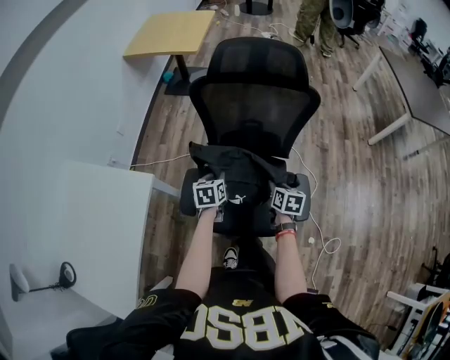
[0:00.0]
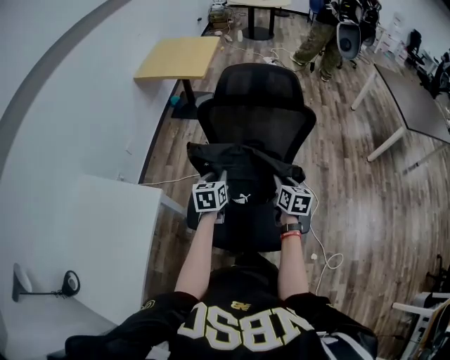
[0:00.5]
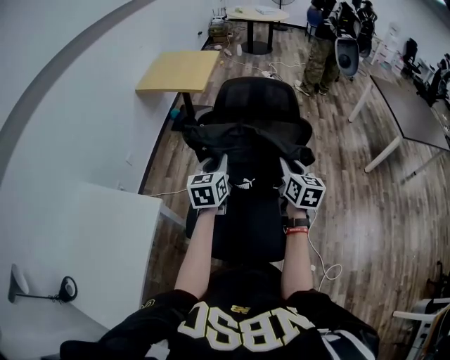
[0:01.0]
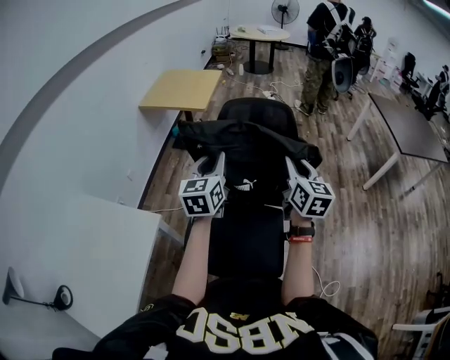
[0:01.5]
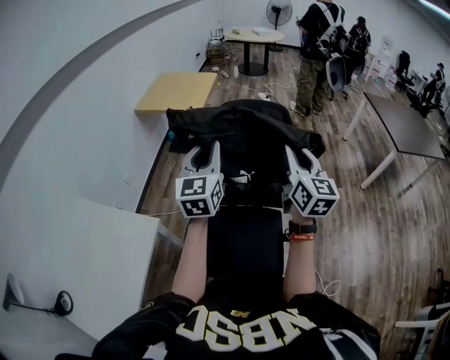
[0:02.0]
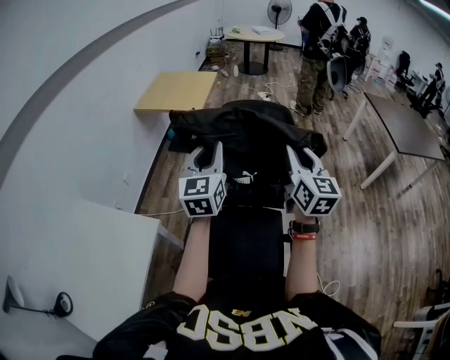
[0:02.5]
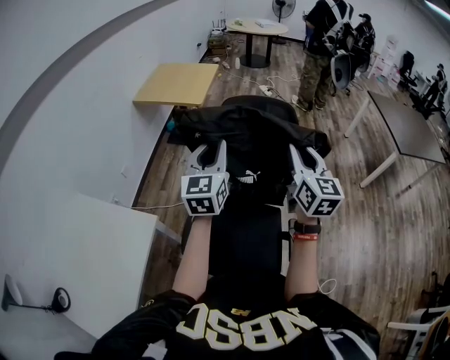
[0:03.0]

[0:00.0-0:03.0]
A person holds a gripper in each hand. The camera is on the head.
0:00.0 to 0:01.5: The grippers both shift upward by roughly 35 cm. The left gripper points its fingers roughly 40 degrees further upward, while the right gripper tilts its fingers some 40 degrees upward.
0:01.5 to 0:03.0: The left gripper changes place by some 5 cm, while the right gripper shifts by roughly 5 cm.

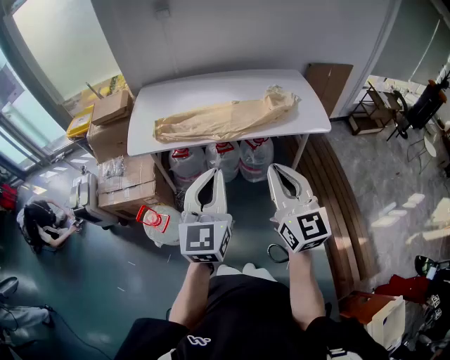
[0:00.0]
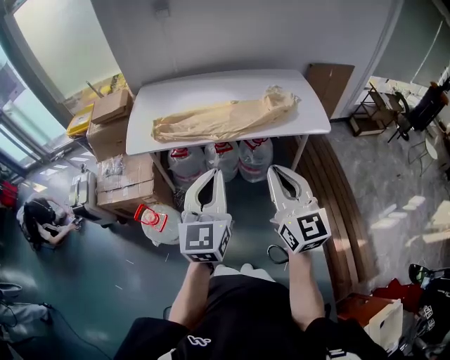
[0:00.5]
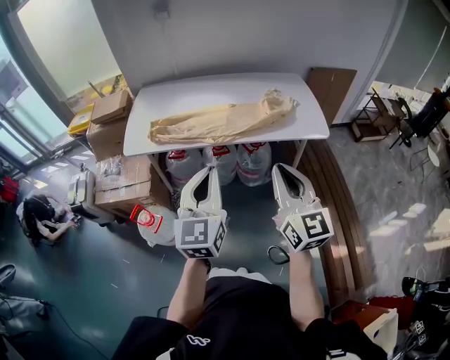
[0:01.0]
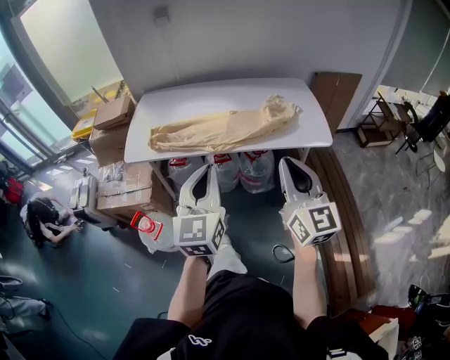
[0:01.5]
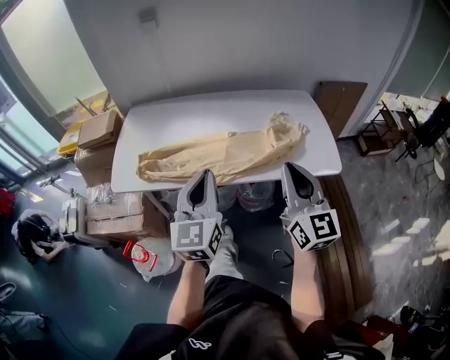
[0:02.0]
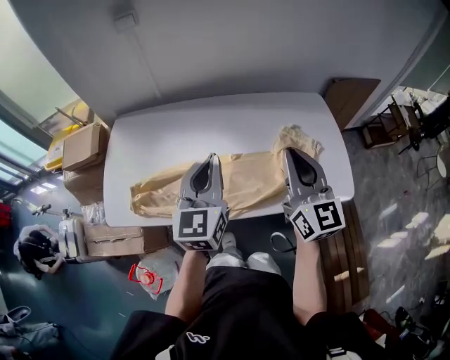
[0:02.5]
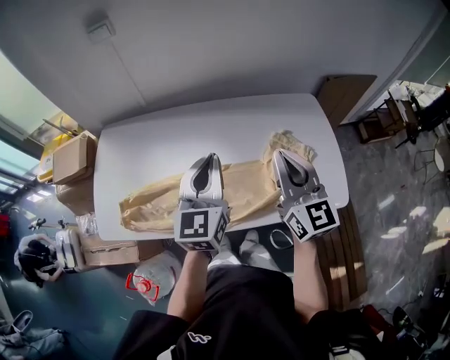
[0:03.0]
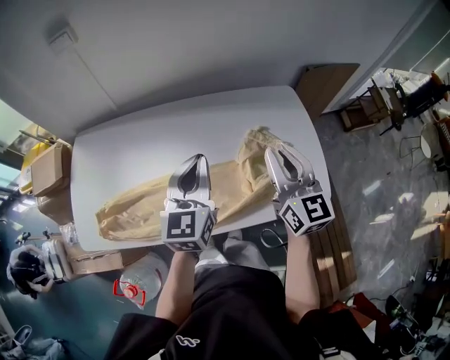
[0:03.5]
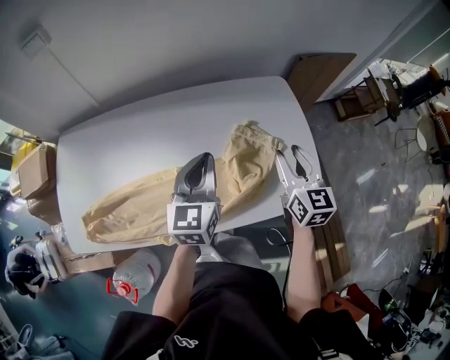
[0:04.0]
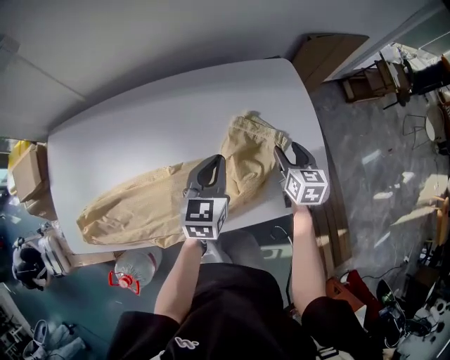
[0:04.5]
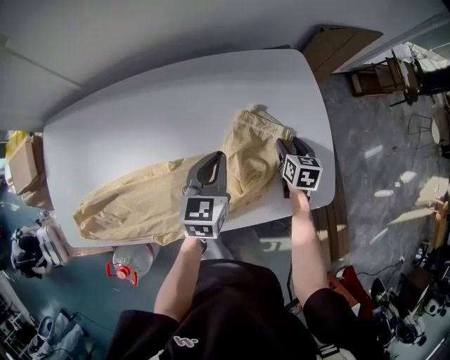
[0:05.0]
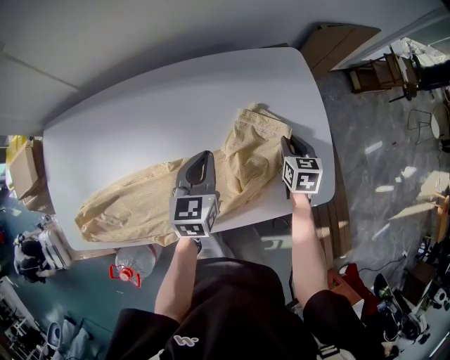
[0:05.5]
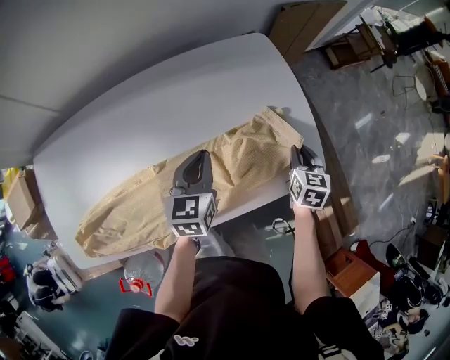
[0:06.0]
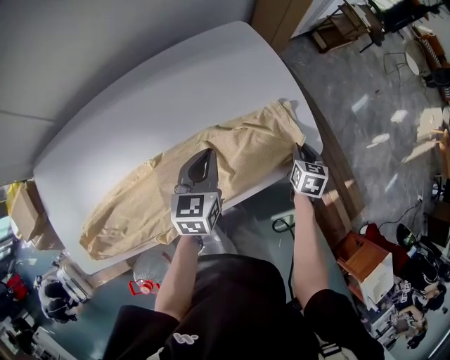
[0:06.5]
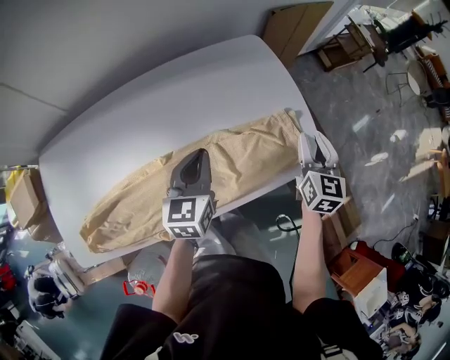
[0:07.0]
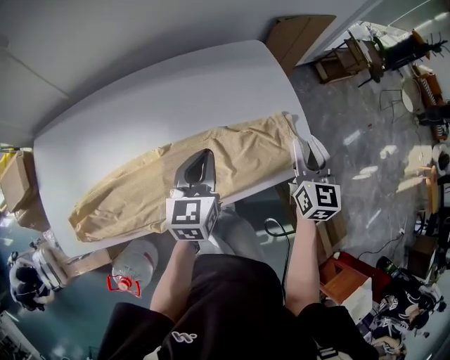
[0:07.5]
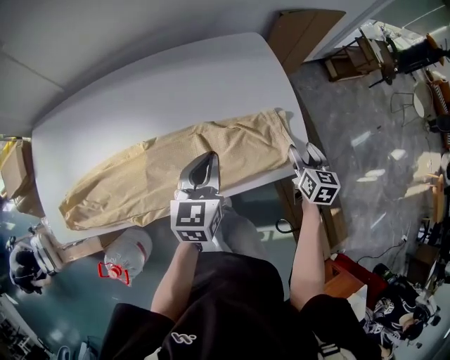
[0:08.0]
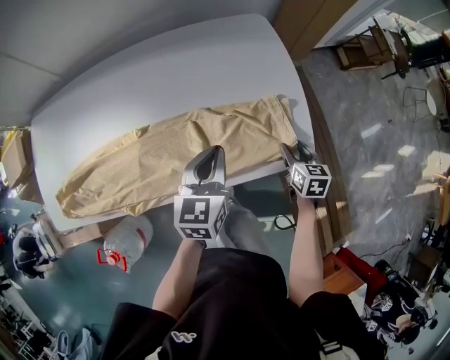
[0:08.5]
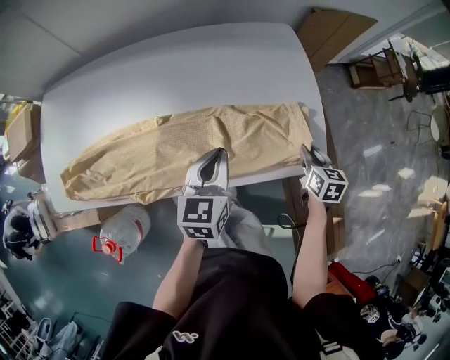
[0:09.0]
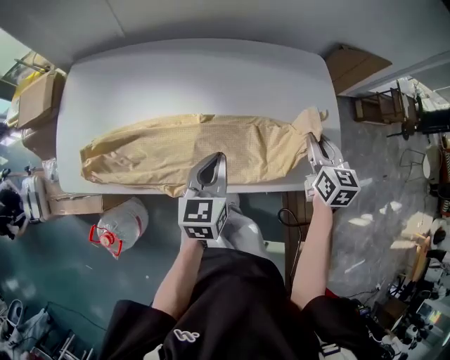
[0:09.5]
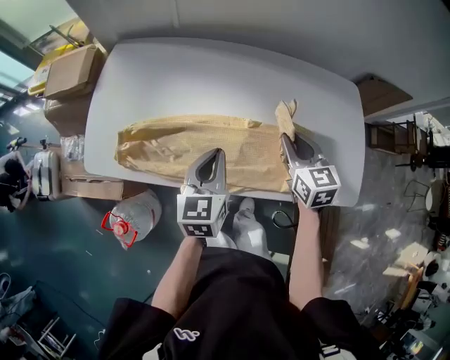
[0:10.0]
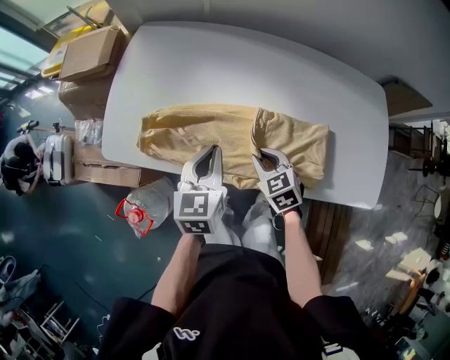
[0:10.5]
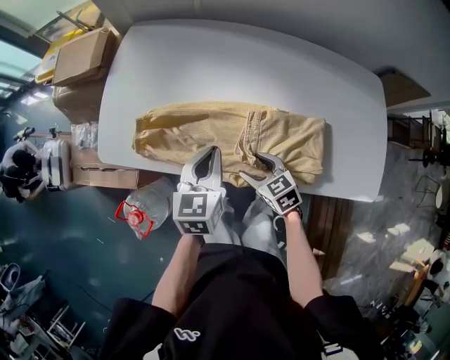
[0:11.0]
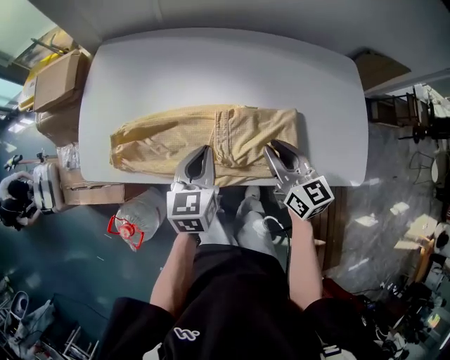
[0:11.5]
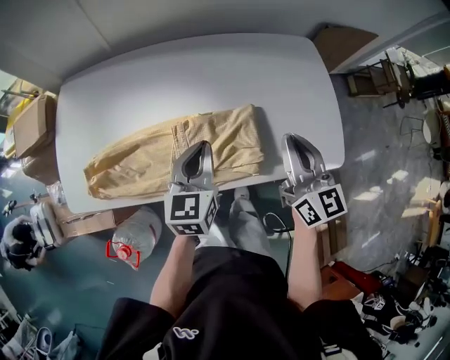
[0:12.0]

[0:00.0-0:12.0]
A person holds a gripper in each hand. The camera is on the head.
0:00.0 to 0:02.0: The left gripper heads forward, covering some 25 cm. Meanwhile the right gripper travels forward and to the right by some 25 cm.
0:02.0 to 0:04.0: Both grippers travel together forward and to the right, some 40 cm. The right gripper turns by some 30 degrees, and opens up.
0:04.0 to 0:06.0: The right gripper heads downward and to the right, covering roughly 25 cm, swivels roughly 30 degrees, and closes, while the left gripper shifts roughly 15 cm downward and to the right.
0:06.0 to 0:08.0: The right gripper goes up and down, roughly 20 cm each way, reversing 2 times, and opens. Meanwhile the left gripper goes left and right, about 10 cm each way, reversing 2 times.
0:08.0 to 0:10.0: The right gripper ends up some 40 cm from where it was, swivels approximately 40 degrees, and closes its fingers. Meanwhile the left gripper changes place by roughly 30 cm, and swivels approximately 20 degrees.
0:10.0 to 0:12.0: The right gripper goes downward and returns, roughly 15 cm each way, changes its angle by about 30 degrees, and opens, then closes again; the left gripper shifts by approximately 10 cm.

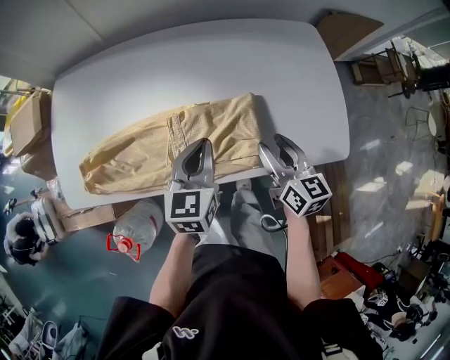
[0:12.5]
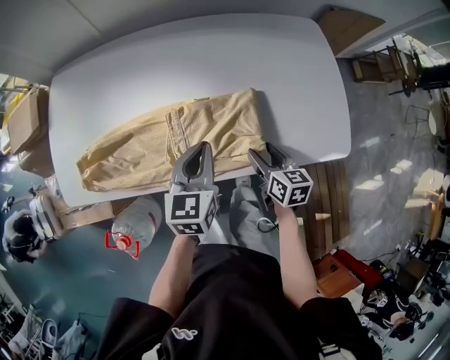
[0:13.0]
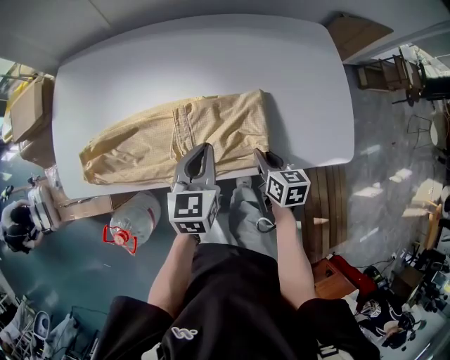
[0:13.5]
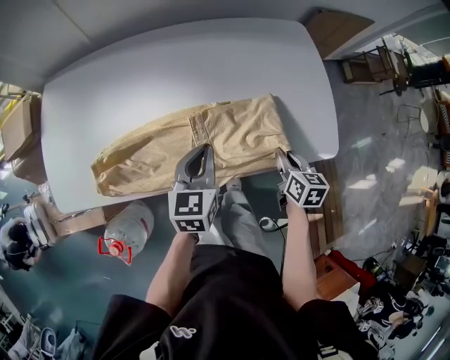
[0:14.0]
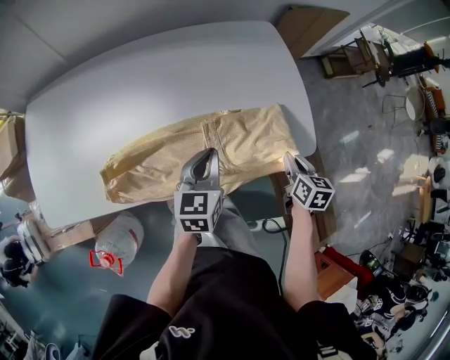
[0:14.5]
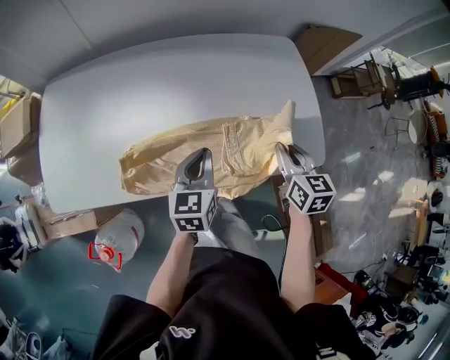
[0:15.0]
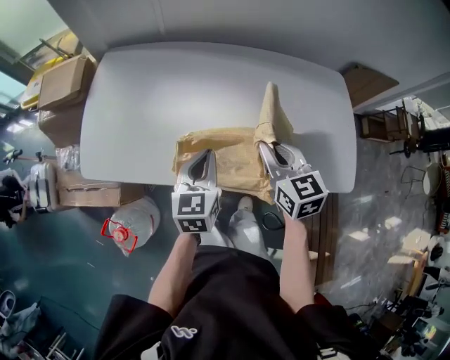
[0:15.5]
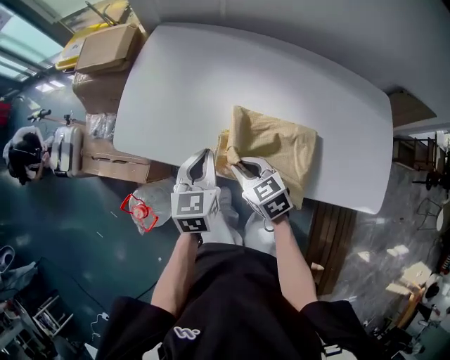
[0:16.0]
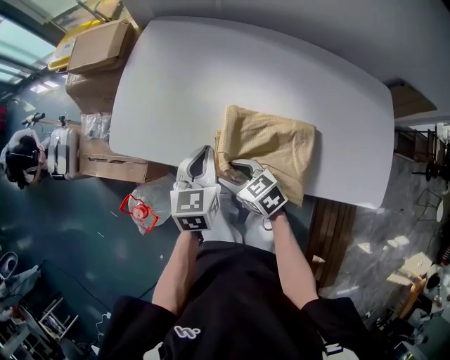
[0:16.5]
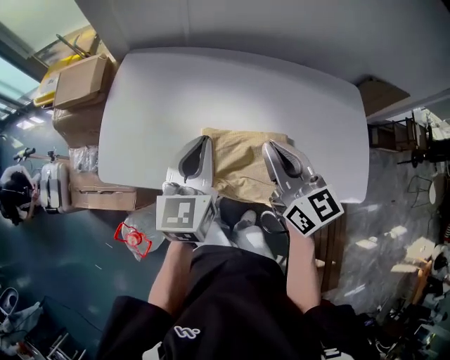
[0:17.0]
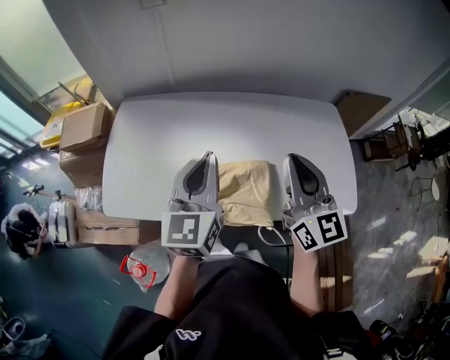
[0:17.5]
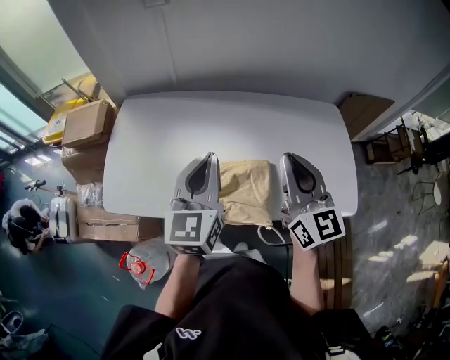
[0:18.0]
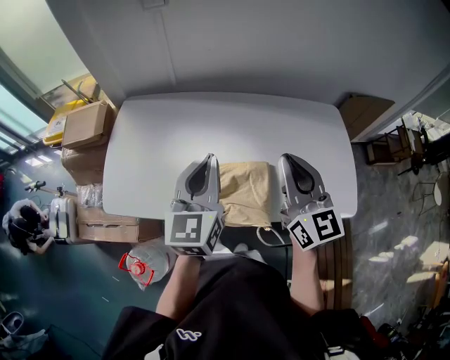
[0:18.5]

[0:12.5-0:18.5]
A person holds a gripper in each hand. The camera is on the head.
0:12.5 to 0:14.5: The left gripper heads to the right, covering some 15 cm; the right gripper shifts some 25 cm to the right, rotates some 30 degrees, and closes up.
0:14.5 to 0:16.5: The left gripper changes place by some 40 cm, and swivels about 30 degrees. Meanwhile the right gripper goes upward and returns, about 15 cm each way, turns by about 80 degrees, and opens its fingers.
0:16.5 to 0:18.5: The left gripper travels upward by some 20 cm, and rotates about 30 degrees; the right gripper shifts some 35 cm upward, tilts its fingers some 40 degrees upward, and closes its fingers.

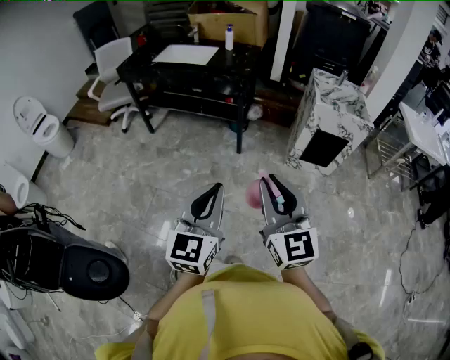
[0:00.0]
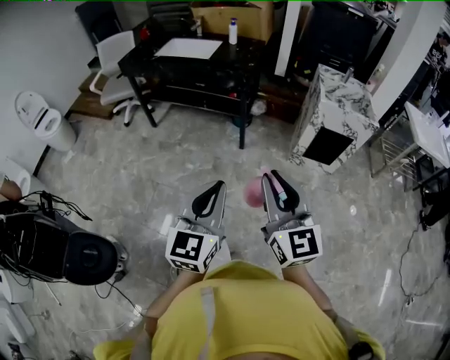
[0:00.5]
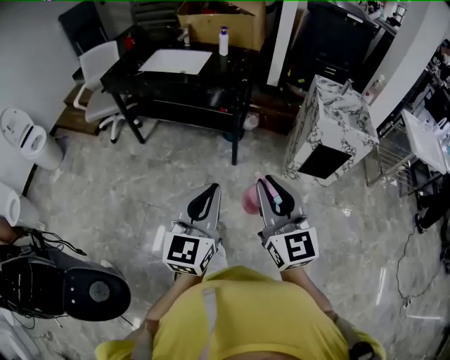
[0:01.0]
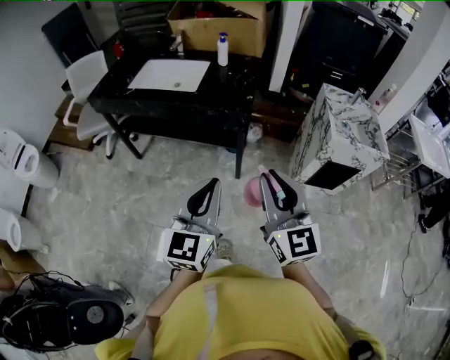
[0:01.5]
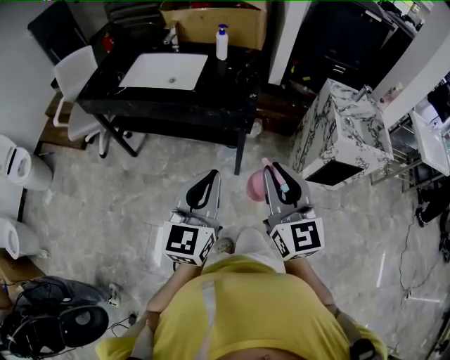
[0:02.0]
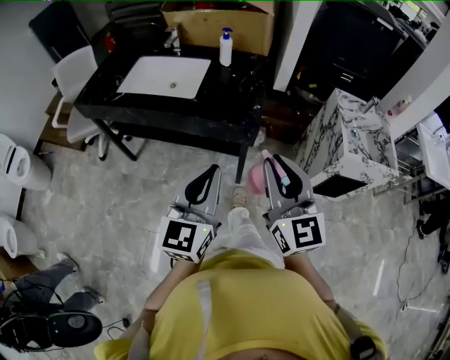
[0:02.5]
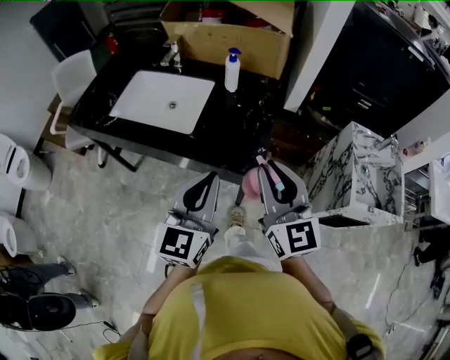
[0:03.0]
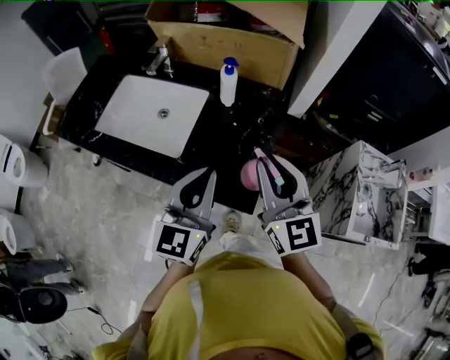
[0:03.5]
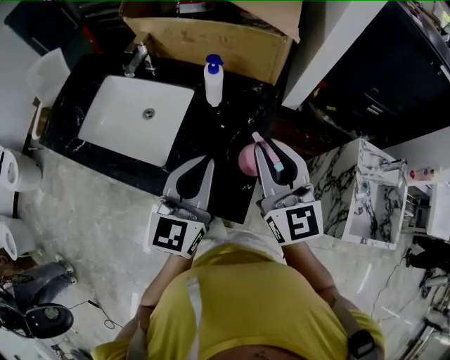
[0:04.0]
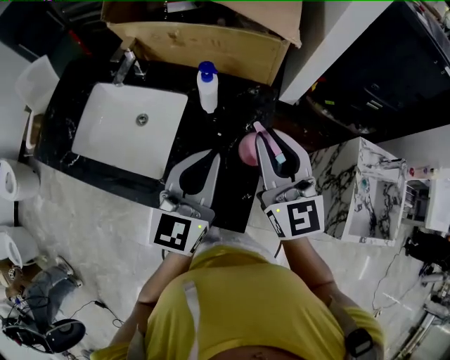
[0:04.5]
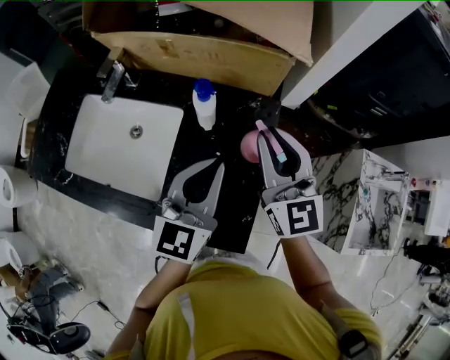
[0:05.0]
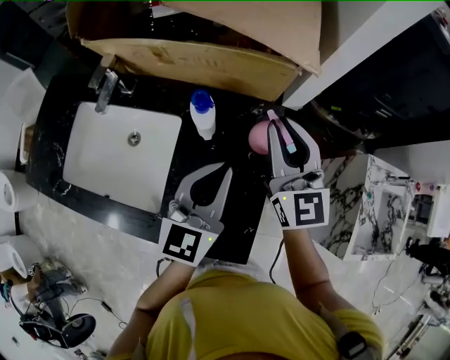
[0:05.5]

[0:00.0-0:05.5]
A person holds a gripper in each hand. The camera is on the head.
0:00.0 to 0:02.0: Both grippers are carried forward, some 40 cm.
0:02.0 to 0:03.5: The two grippers travel together, forward, roughly 40 cm.
0:03.5 to 0:05.5: Both grippers travel together forward, some 25 cm.
